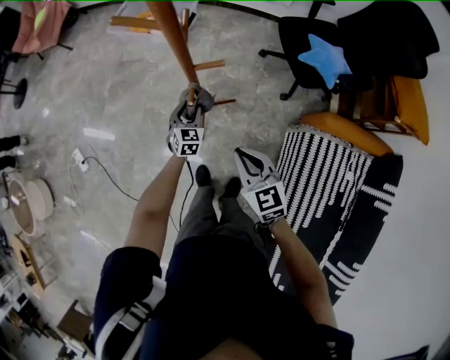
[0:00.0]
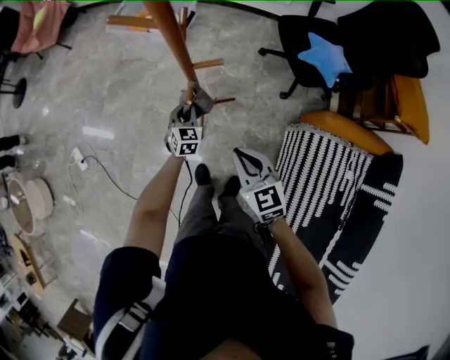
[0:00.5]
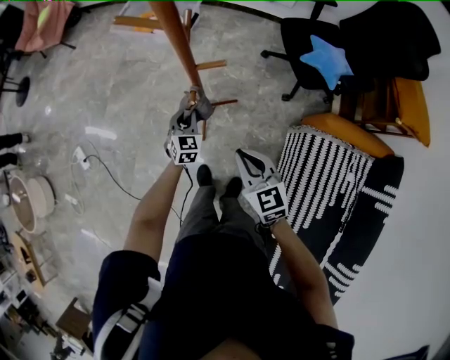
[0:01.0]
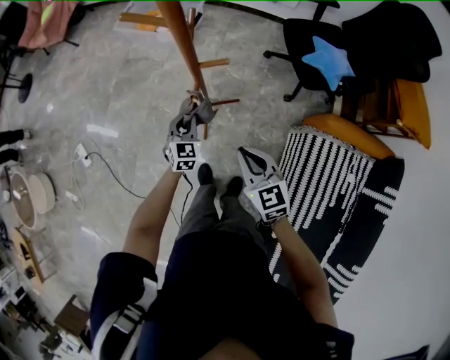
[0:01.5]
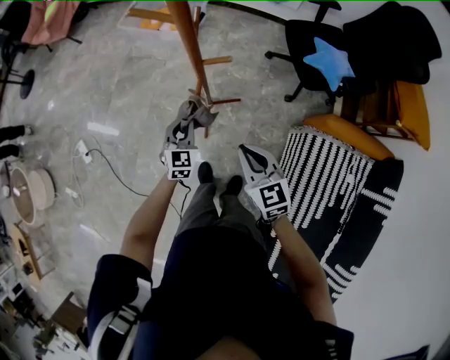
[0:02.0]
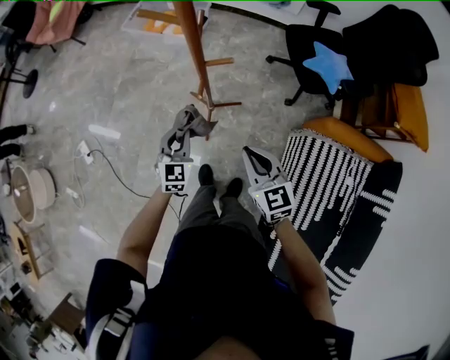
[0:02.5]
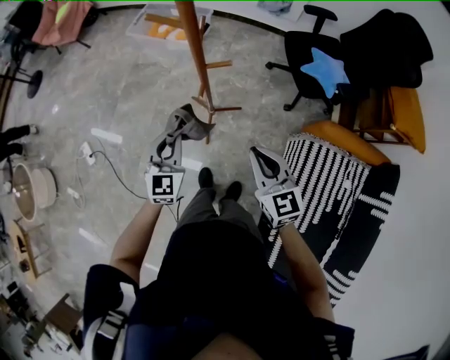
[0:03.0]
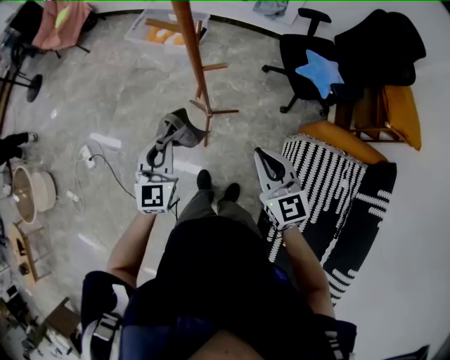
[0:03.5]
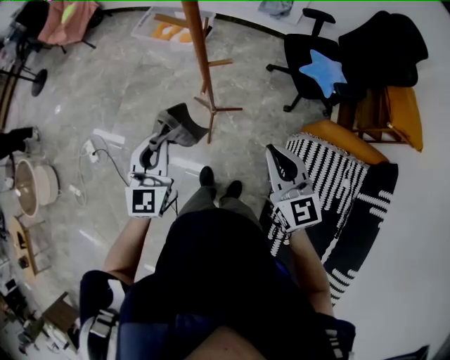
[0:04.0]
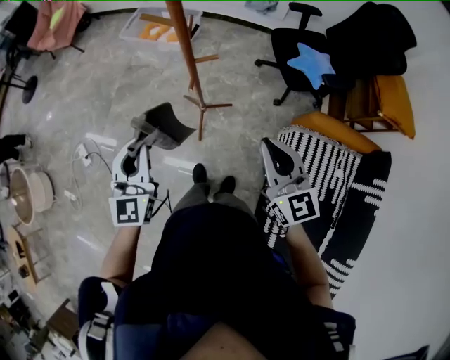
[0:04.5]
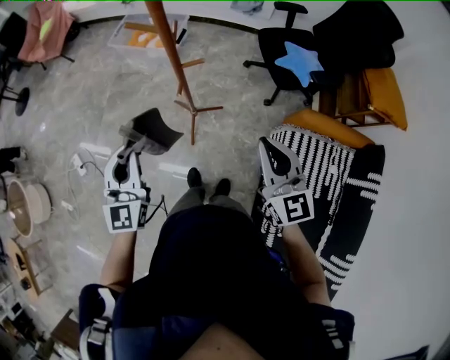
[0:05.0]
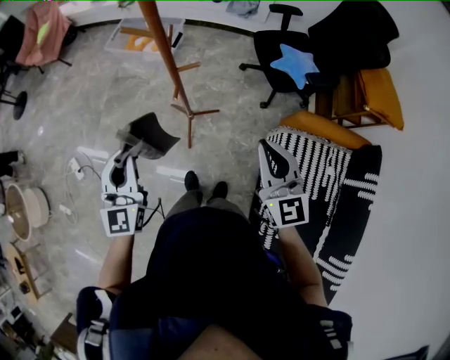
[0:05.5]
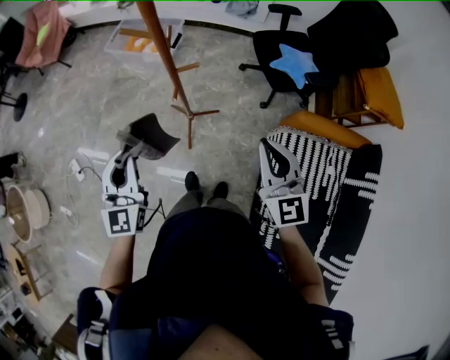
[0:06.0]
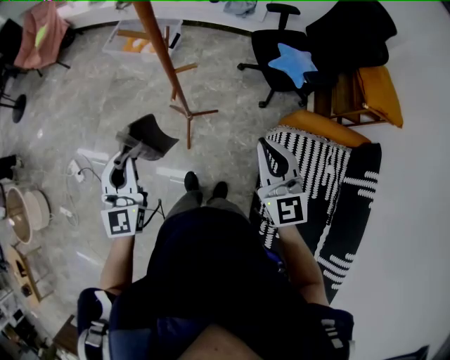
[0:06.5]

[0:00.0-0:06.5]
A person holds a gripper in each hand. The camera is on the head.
0:00.0 to 0:02.0: The left gripper is displaced upward and backward by roughly 10 cm, and closes its fingers.
0:02.0 to 0:04.5: The left gripper goes about 35 cm upward and backward, and changes its angle by some 20 degrees. The right gripper is displaced upward by approximately 20 cm.
0:04.5 to 0:06.5: The grippers move only a little.

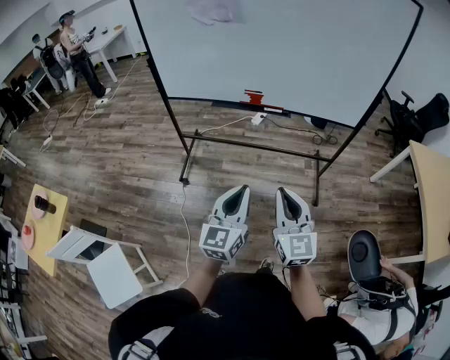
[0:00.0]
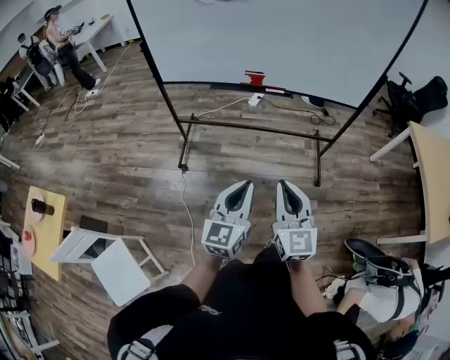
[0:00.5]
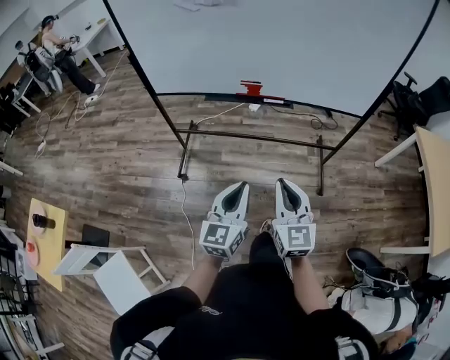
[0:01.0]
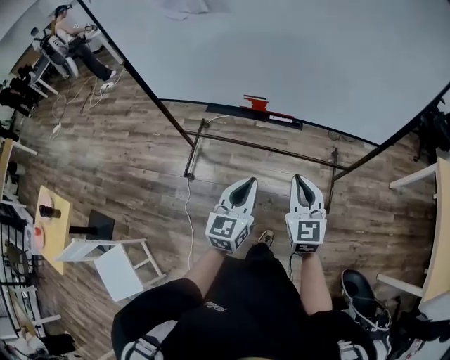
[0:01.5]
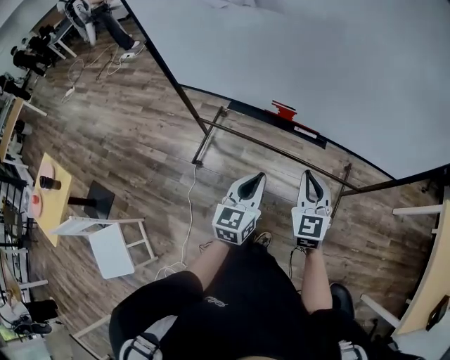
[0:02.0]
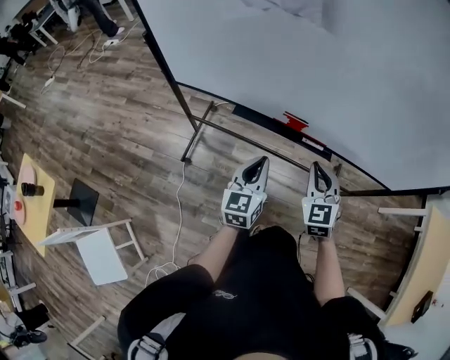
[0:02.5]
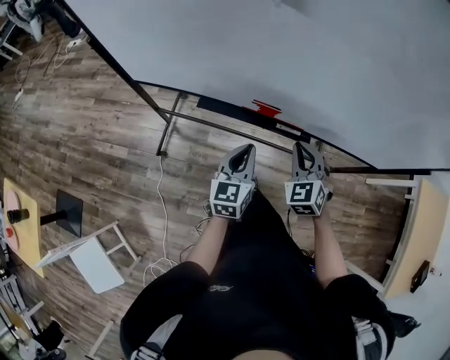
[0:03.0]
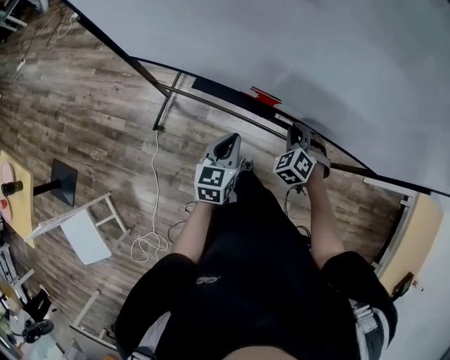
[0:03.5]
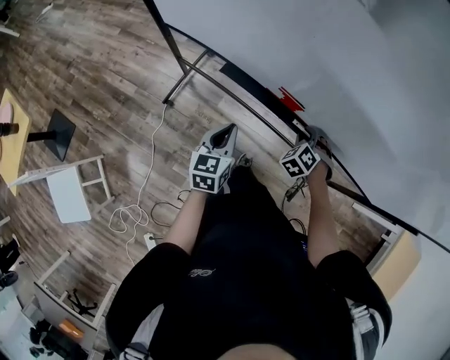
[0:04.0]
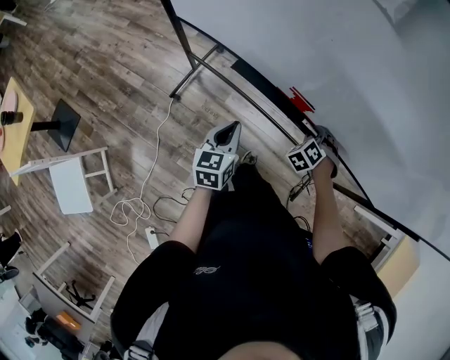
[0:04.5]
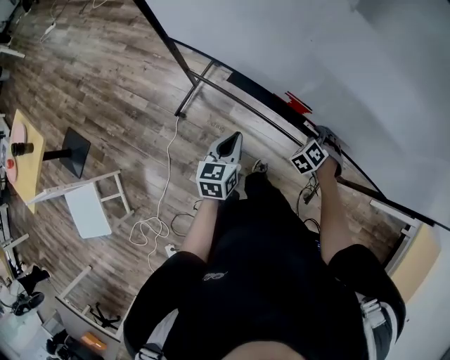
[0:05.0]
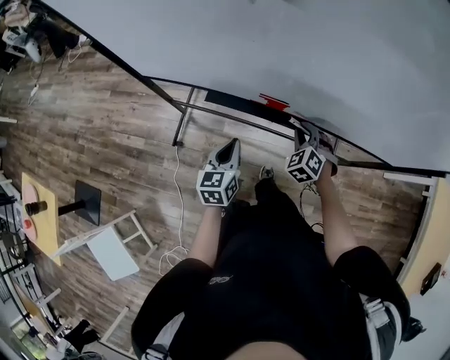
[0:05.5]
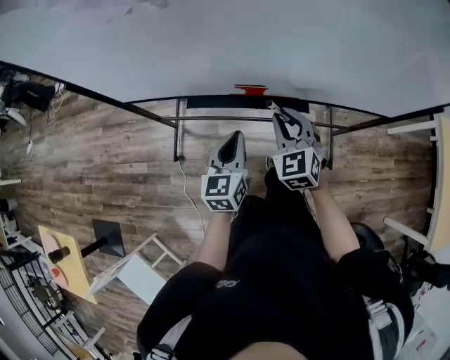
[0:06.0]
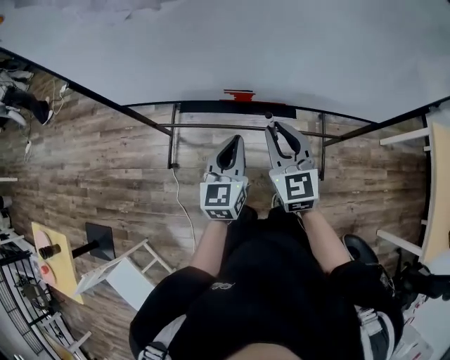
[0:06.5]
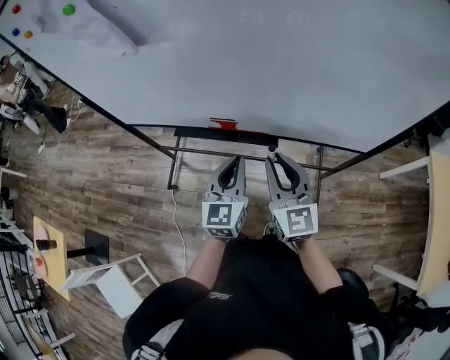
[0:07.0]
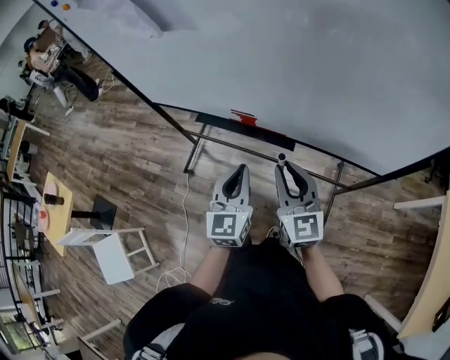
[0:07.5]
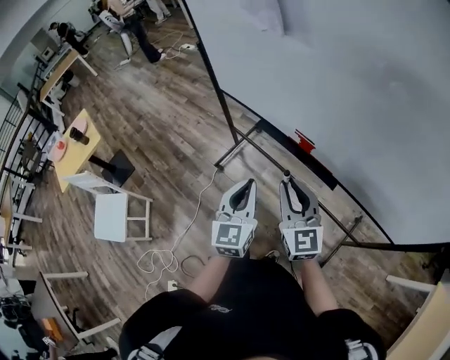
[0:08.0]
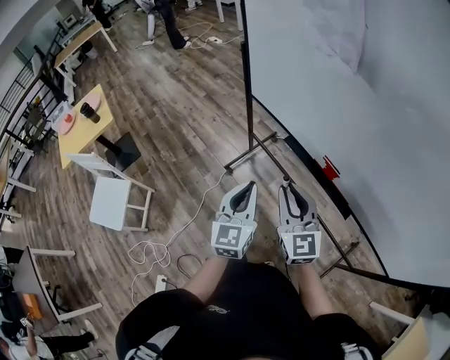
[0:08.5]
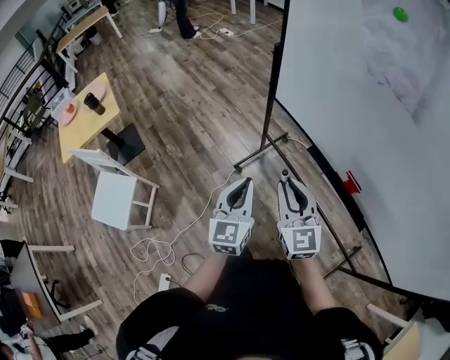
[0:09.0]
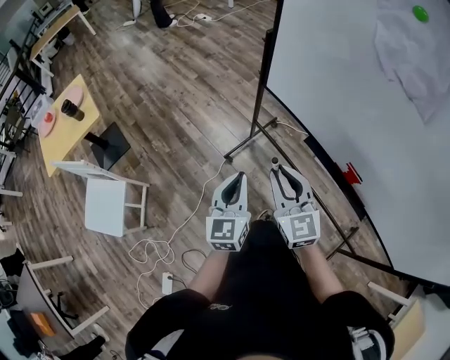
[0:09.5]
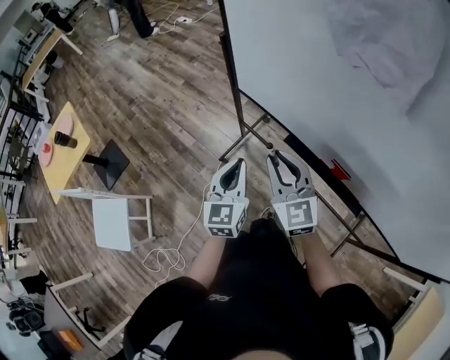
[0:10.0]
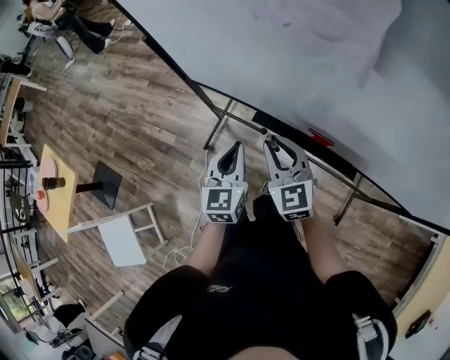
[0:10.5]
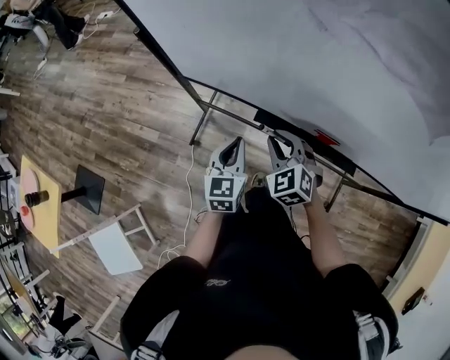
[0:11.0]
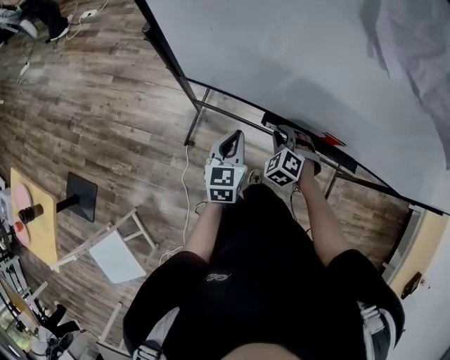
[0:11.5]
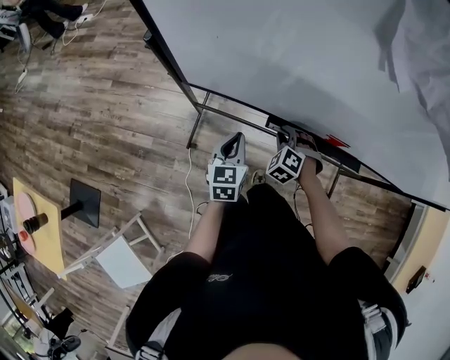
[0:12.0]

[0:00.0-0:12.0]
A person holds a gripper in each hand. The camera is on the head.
0:00.0 to 0:02.0: The grippers both shift forward by about 35 cm.
0:02.0 to 0:04.0: The left gripper travels forward, downward and to the left by some 25 cm, and turns by roughly 20 degrees. The right gripper heads downward and forward, covering about 35 cm, and tips its fingers downward by approximately 40 degrees.
0:04.0 to 0:06.0: The left gripper is displaced upward and to the right by some 10 cm, and swivels about 20 degrees. The right gripper moves upward, some 20 cm, and turns by approximately 50 degrees.
0:06.0 to 0:08.0: The left gripper moves approximately 20 cm, and rotates approximately 40 degrees. Meanwhile the right gripper ends up some 20 cm from where it was, and rotates approximately 50 degrees.
0:08.0 to 0:10.0: Both grippers travel together forward and to the left, roughly 30 cm.
0:10.0 to 0:12.0: The left gripper is displaced downward by some 15 cm, and swivels some 30 degrees. Meanwhile the right gripper moves downward, roughly 25 cm, and tips its fingers downward by about 50 degrees.

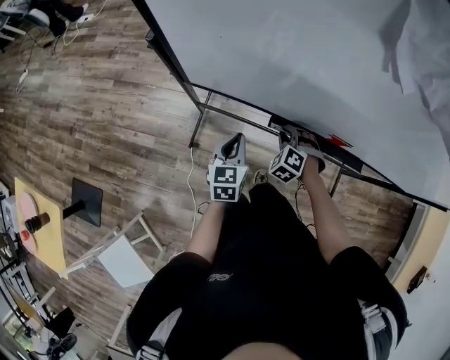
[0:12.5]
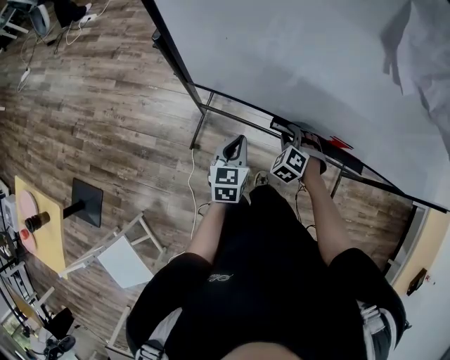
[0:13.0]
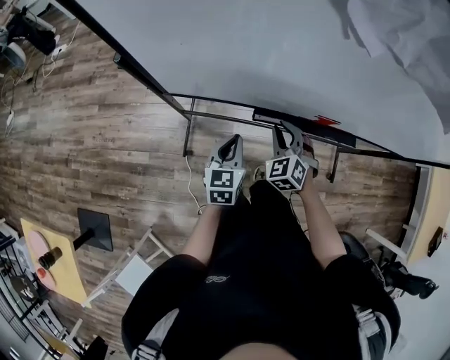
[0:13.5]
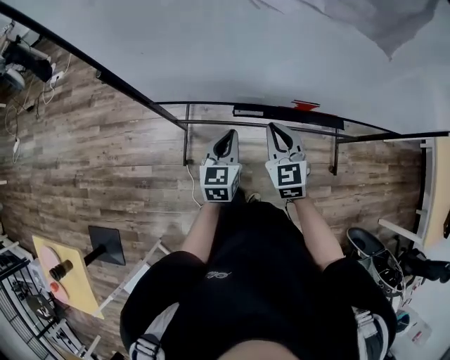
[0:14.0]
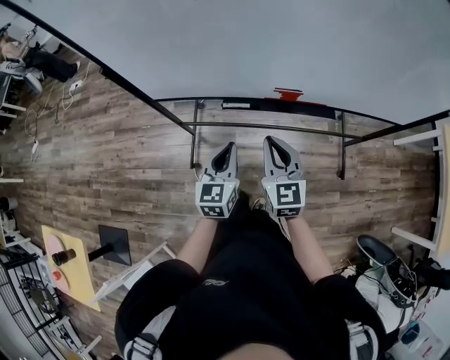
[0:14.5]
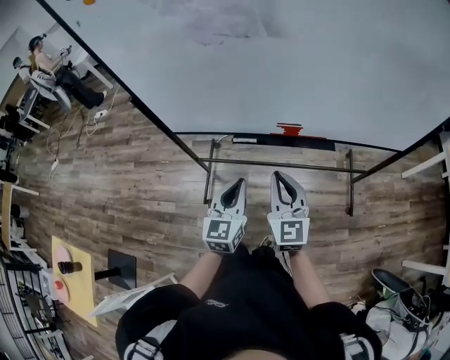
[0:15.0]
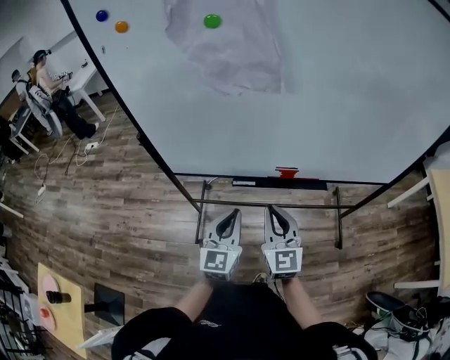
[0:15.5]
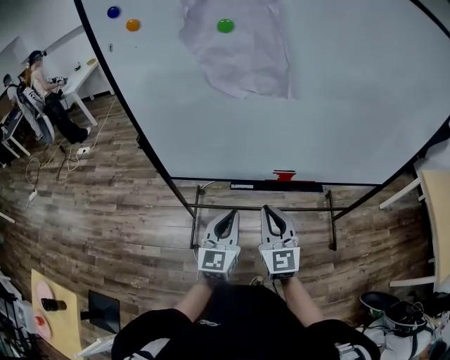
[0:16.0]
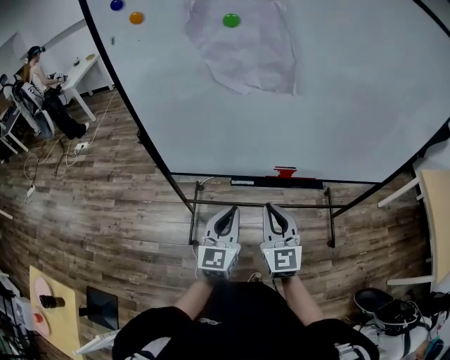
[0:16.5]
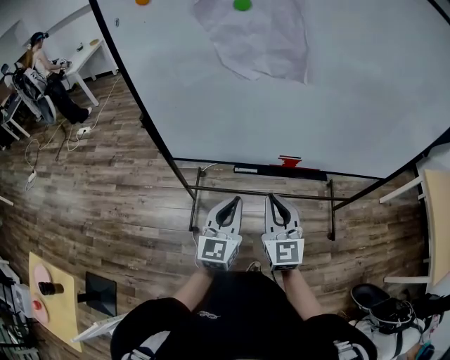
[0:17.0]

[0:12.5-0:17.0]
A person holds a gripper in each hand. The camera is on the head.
0:12.5 to 0:14.5: The right gripper travels upward, backward and to the right by about 30 cm, and tips its fingers upward by roughly 50 degrees. Meanwhile the left gripper moves to the right, backward and upward, approximately 20 cm.
0:14.5 to 0:17.0: The left gripper heads upward, covering some 10 cm. The right gripper is displaced upward and backward by approximately 15 cm.

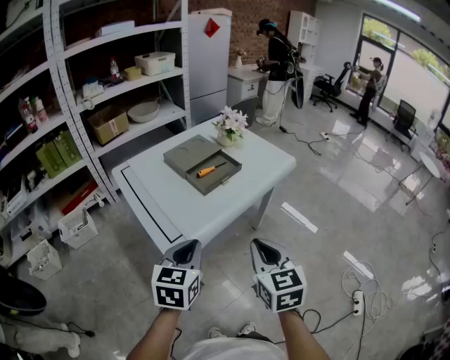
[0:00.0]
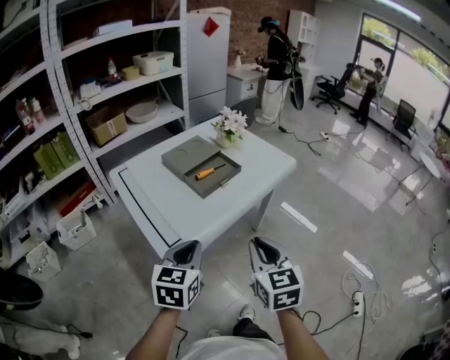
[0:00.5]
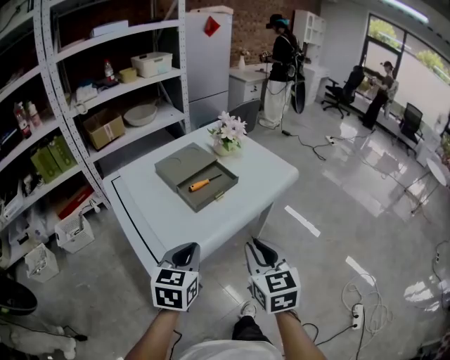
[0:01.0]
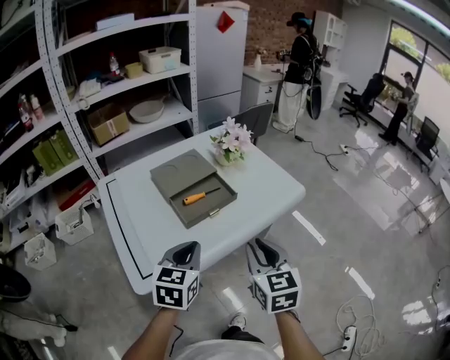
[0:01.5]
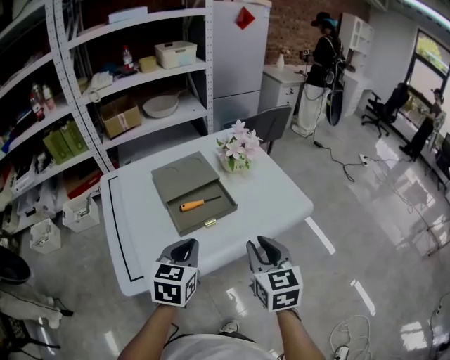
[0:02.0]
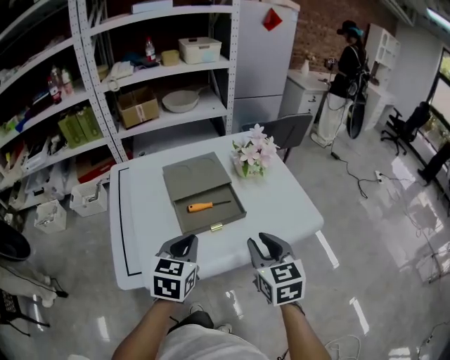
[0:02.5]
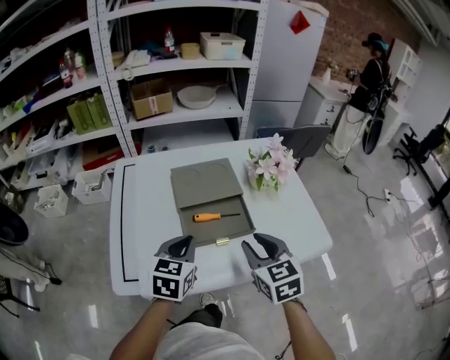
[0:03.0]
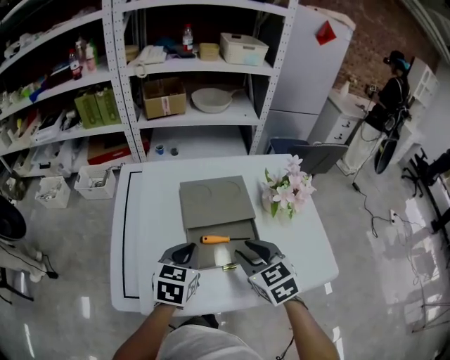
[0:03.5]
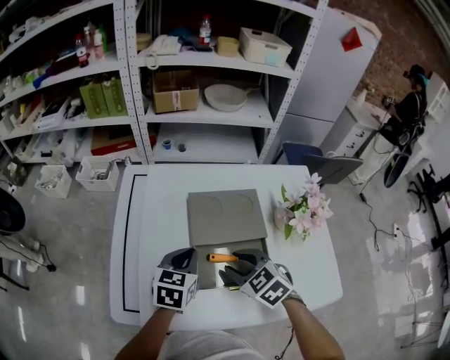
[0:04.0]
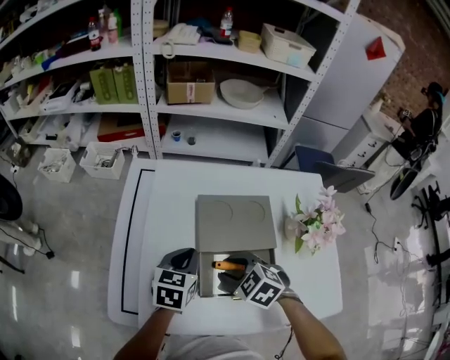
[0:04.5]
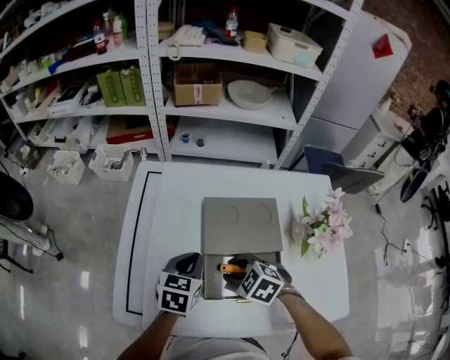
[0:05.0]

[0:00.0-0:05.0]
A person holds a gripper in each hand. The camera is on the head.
0:00.0 to 0:02.5: Both grippers travel together forward, roughly 30 cm. The right gripper swivels roughly 20 degrees, and opens. The left gripper turns by about 20 degrees.
0:02.5 to 0:05.0: The left gripper changes place by about 25 cm, and swivels about 20 degrees; the right gripper shifts by roughly 30 cm, and angles its fingers downward, by about 30 degrees.
